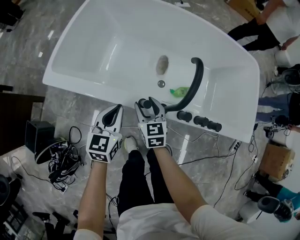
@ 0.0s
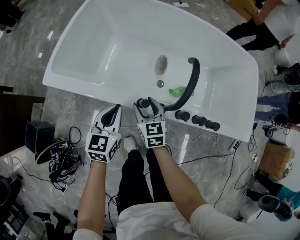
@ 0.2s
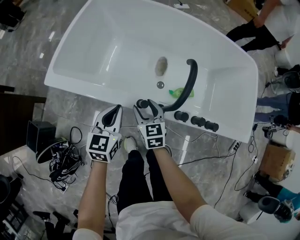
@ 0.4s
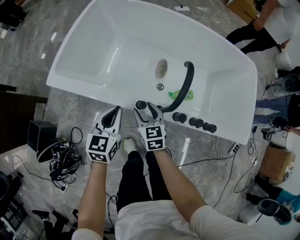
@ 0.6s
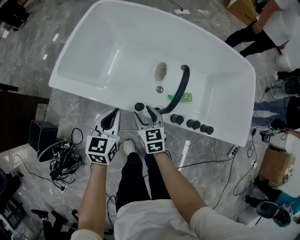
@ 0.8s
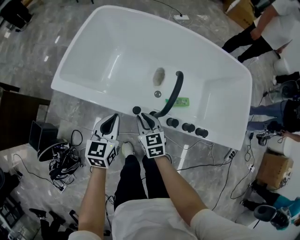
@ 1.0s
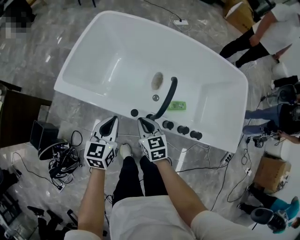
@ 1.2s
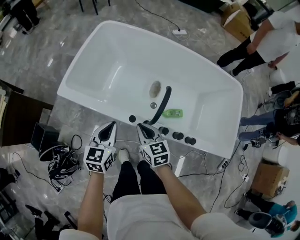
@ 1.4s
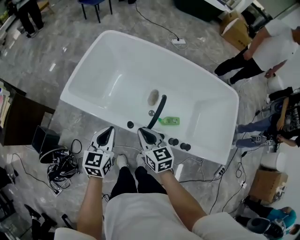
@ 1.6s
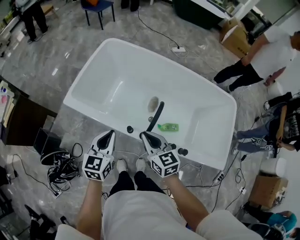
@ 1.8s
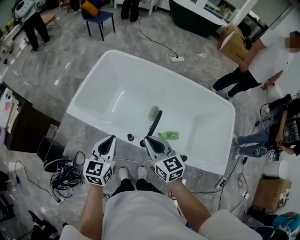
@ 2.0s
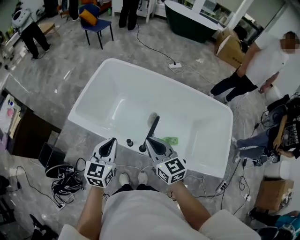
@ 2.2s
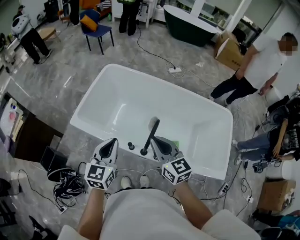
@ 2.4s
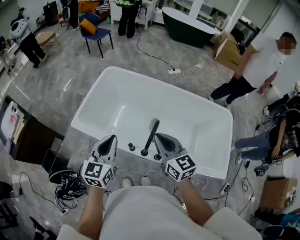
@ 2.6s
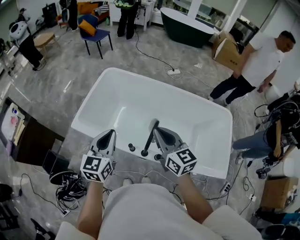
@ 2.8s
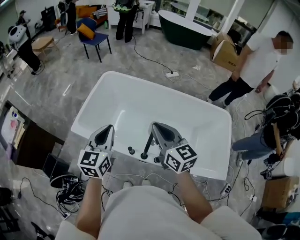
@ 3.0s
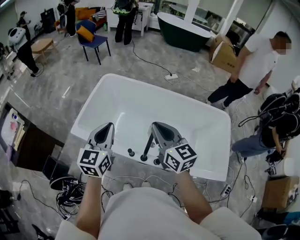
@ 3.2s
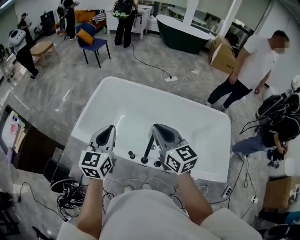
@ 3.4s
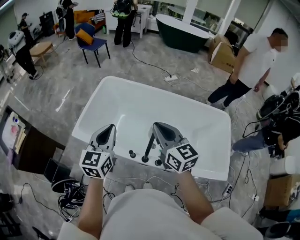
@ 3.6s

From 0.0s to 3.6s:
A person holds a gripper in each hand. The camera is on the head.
From 0.0s to 1.8s: Both grippers move upward, roughly 25 cm. The right gripper swivels approximately 20 degrees, and closes up.
From 1.8s to 3.6s: The two grippers go some 20 cm upward.

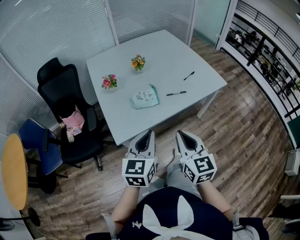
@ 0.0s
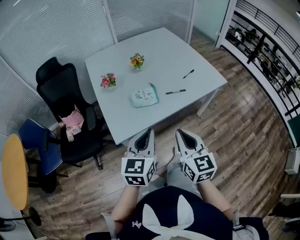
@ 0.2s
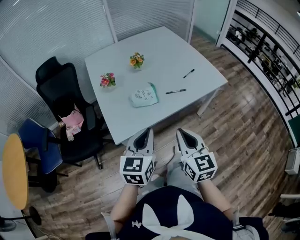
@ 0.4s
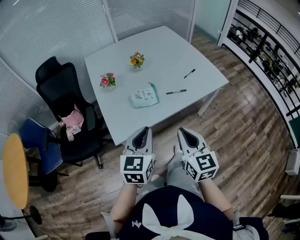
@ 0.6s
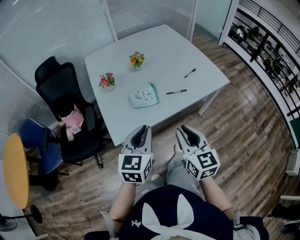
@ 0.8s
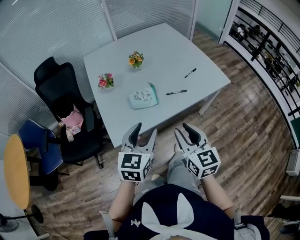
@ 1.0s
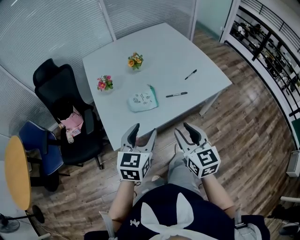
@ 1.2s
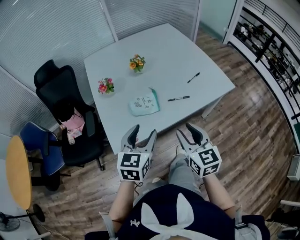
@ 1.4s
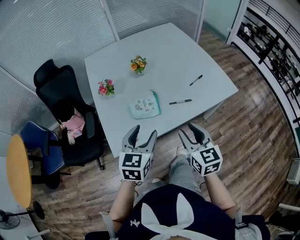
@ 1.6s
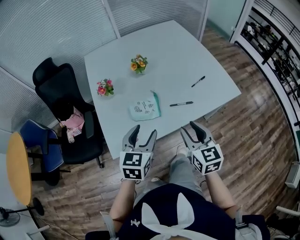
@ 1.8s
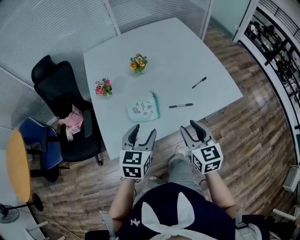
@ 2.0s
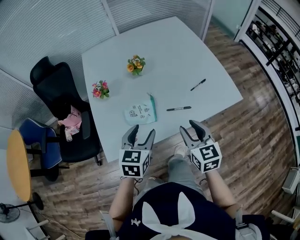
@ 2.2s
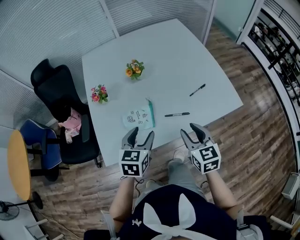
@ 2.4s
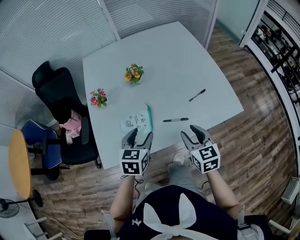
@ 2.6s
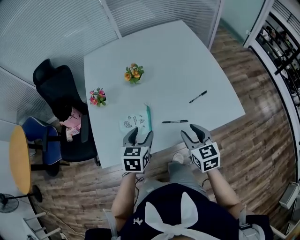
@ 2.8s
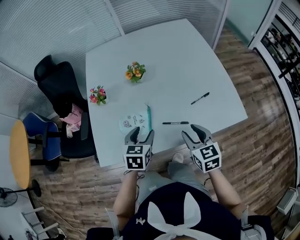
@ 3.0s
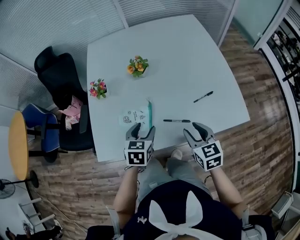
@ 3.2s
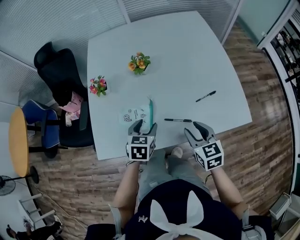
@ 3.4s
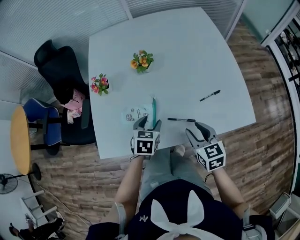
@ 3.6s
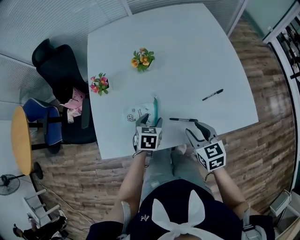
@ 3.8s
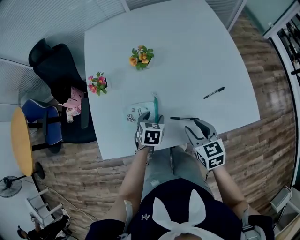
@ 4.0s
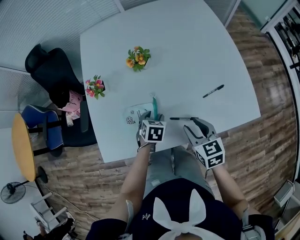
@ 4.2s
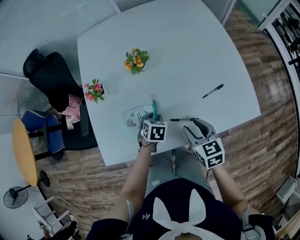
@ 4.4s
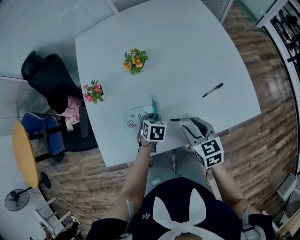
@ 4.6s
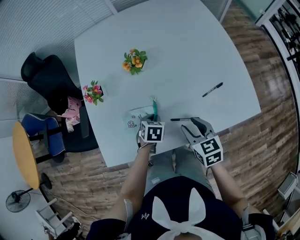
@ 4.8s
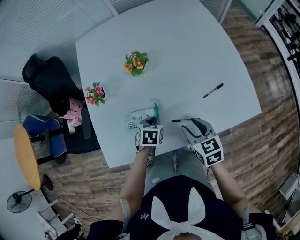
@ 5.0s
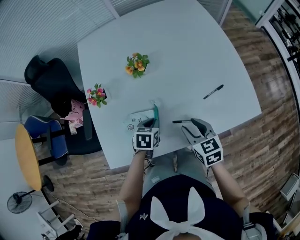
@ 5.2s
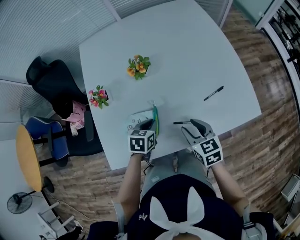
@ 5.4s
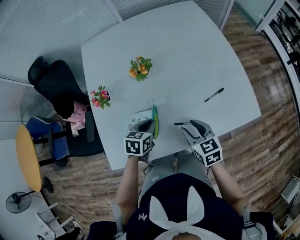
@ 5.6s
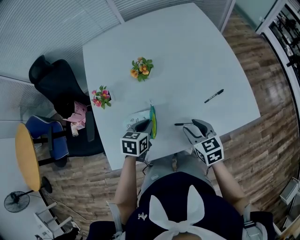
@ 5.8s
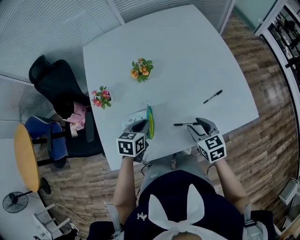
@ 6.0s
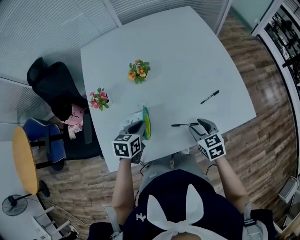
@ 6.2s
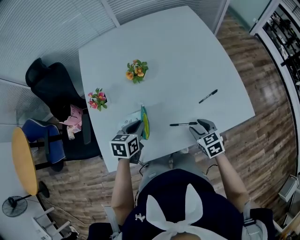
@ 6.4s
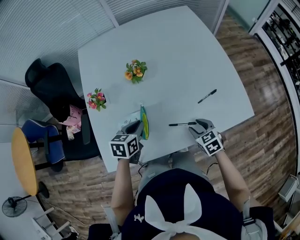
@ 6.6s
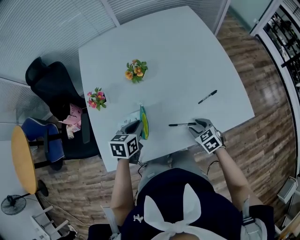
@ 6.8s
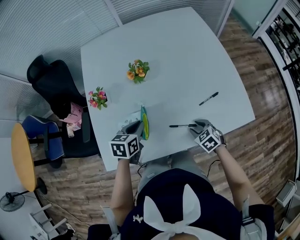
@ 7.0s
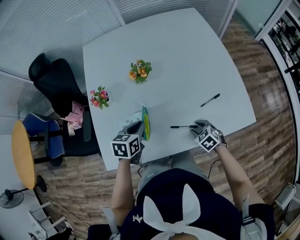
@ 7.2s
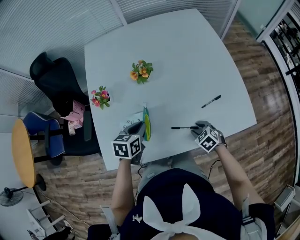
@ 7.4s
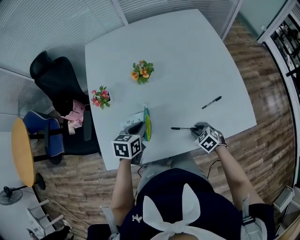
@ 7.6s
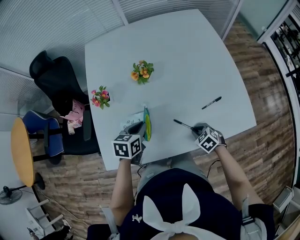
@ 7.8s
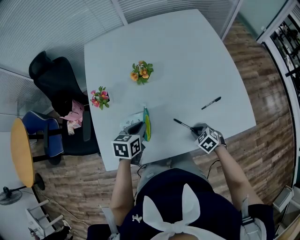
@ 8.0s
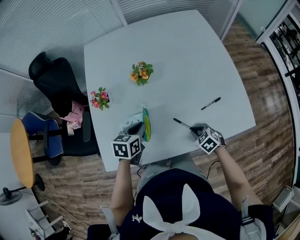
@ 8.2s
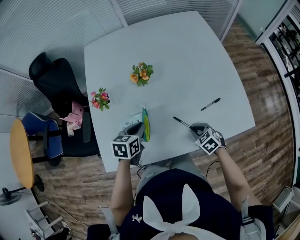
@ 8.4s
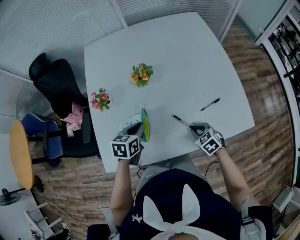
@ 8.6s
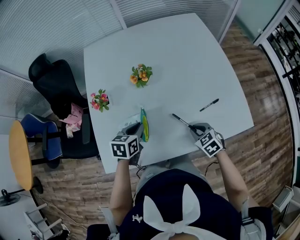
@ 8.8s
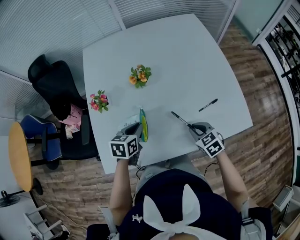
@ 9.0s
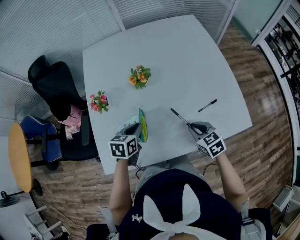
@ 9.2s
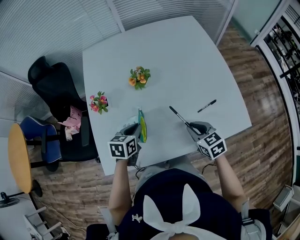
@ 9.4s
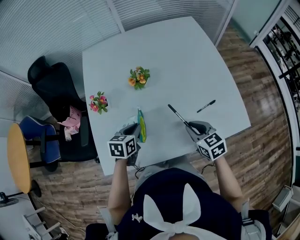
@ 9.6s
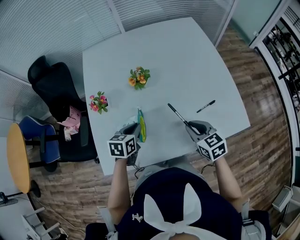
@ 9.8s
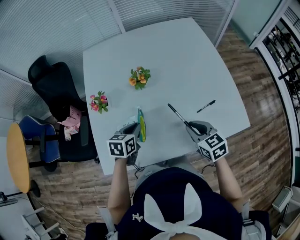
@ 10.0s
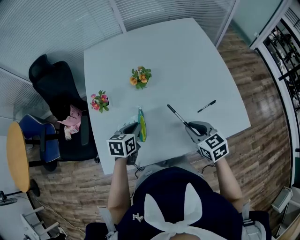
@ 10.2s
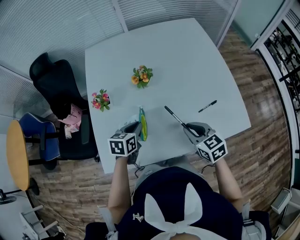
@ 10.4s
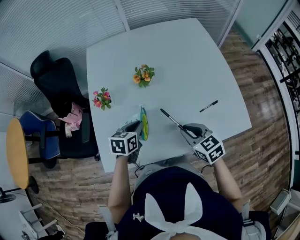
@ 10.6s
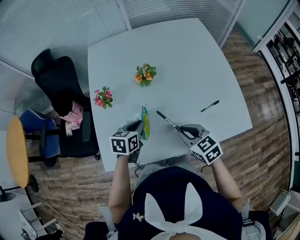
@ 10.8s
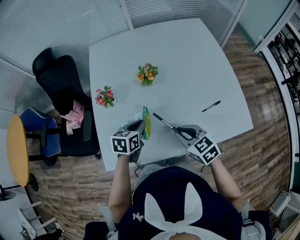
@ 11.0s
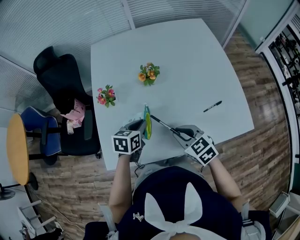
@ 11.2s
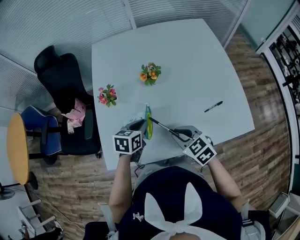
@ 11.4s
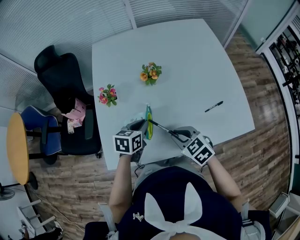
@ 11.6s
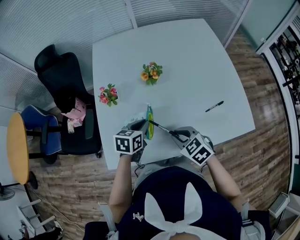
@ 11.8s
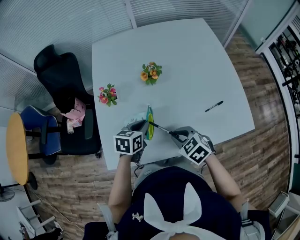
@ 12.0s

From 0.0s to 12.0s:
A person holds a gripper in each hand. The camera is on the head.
From 0.0s to 1.6s: The two grippers go about 15 cm forward. The left gripper opens up, while the right gripper opens its fingers.
From 1.6s to 3.0s: The right gripper moves forward, to the right and downward, approximately 20 cm; the left gripper is displaced forward, downward and to the right by about 20 cm, and turns by some 20 degrees.
From 3.0s to 4.4s: The right gripper moves downward, some 5 cm. Meanwhile the left gripper travels downward and forward by roughly 15 cm, swivels roughly 20 degrees, and closes its fingers.
From 4.4s to 6.0s: The left gripper travels upward and to the left by about 10 cm, swivels approximately 20 degrees, and closes its fingers.
From 6.0s to 7.6s: The right gripper shifts approximately 15 cm downward, and rotates roughly 40 degrees.
From 7.6s to 9.0s: The right gripper heads upward, covering approximately 10 cm.
From 9.0s to 10.4s: The right gripper travels upward by roughly 10 cm.
From 10.4s to 12.0s: The right gripper moves to the left, roughly 10 cm, and changes its angle by some 20 degrees.

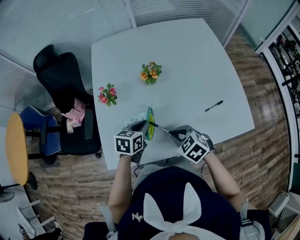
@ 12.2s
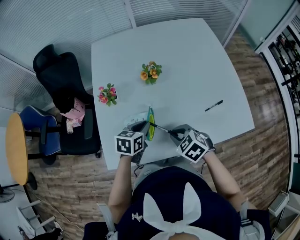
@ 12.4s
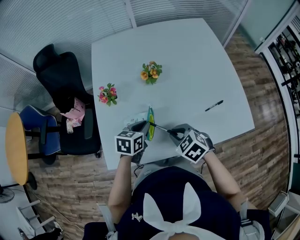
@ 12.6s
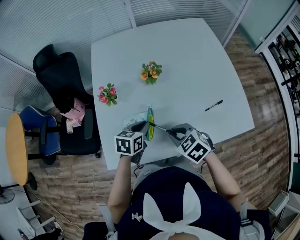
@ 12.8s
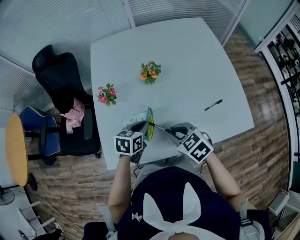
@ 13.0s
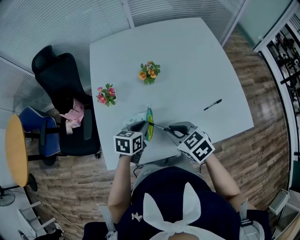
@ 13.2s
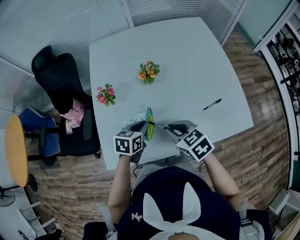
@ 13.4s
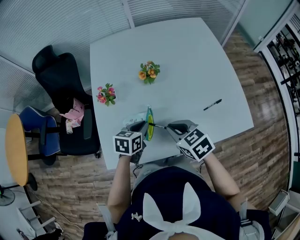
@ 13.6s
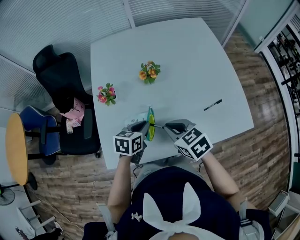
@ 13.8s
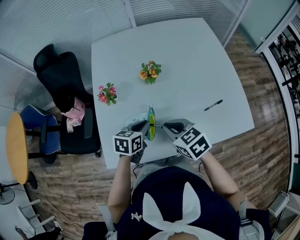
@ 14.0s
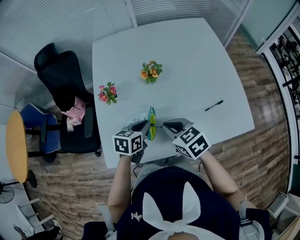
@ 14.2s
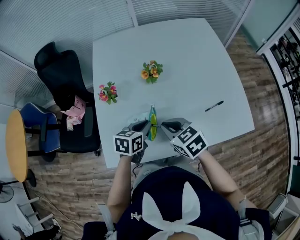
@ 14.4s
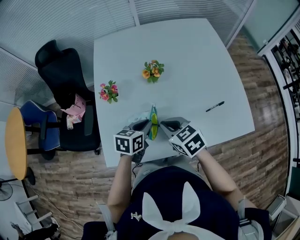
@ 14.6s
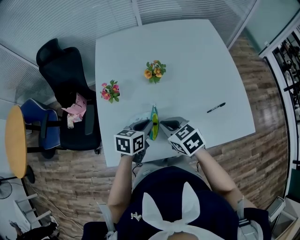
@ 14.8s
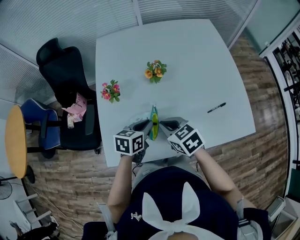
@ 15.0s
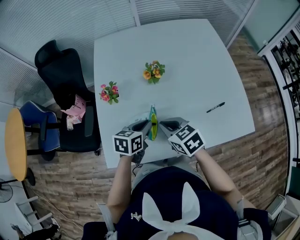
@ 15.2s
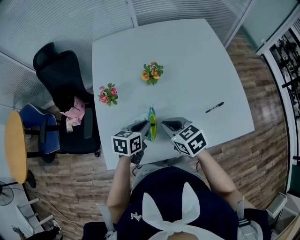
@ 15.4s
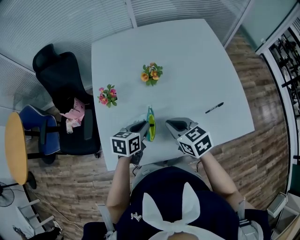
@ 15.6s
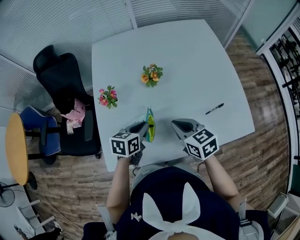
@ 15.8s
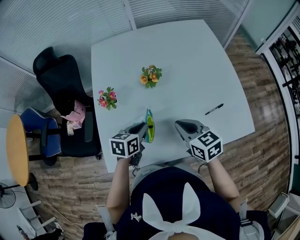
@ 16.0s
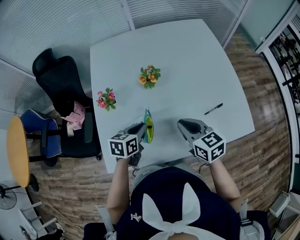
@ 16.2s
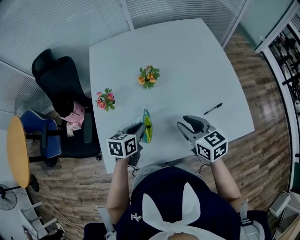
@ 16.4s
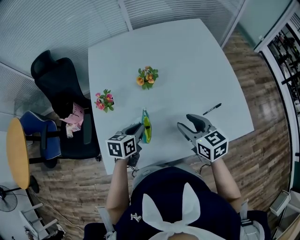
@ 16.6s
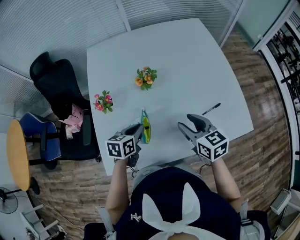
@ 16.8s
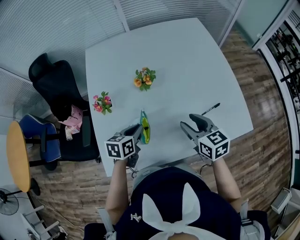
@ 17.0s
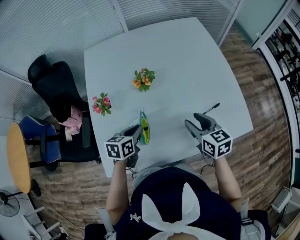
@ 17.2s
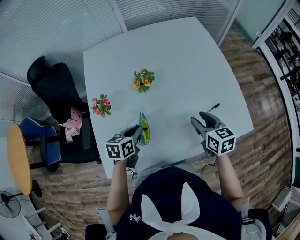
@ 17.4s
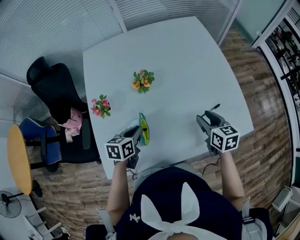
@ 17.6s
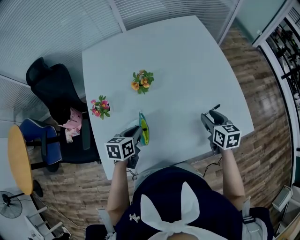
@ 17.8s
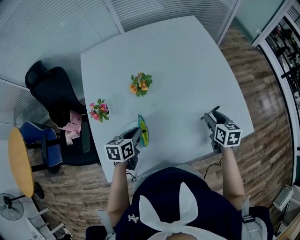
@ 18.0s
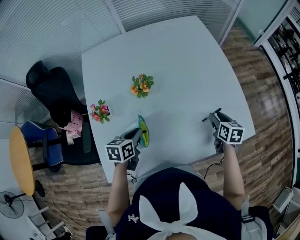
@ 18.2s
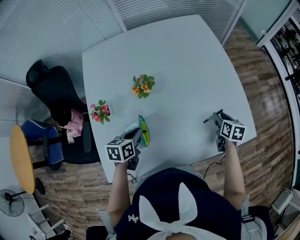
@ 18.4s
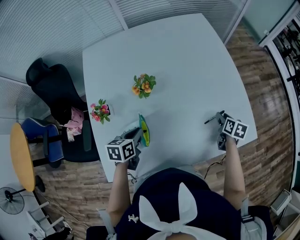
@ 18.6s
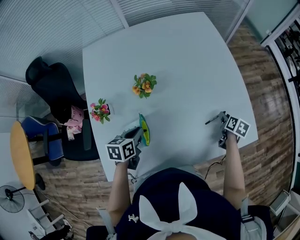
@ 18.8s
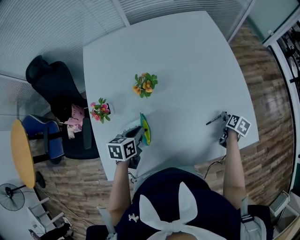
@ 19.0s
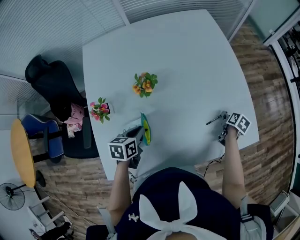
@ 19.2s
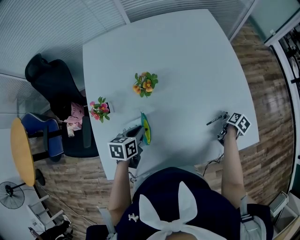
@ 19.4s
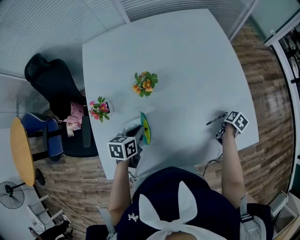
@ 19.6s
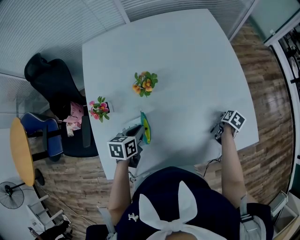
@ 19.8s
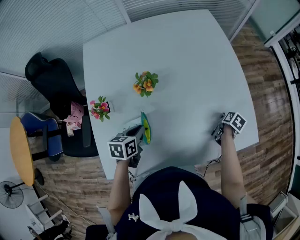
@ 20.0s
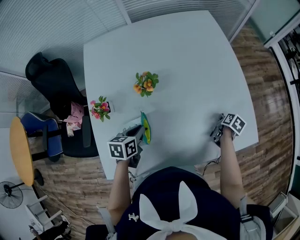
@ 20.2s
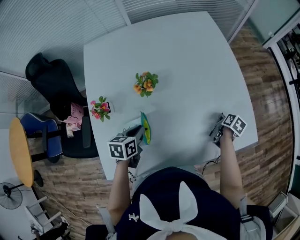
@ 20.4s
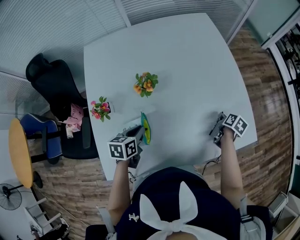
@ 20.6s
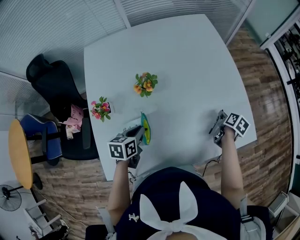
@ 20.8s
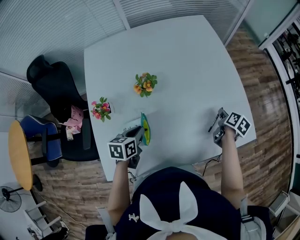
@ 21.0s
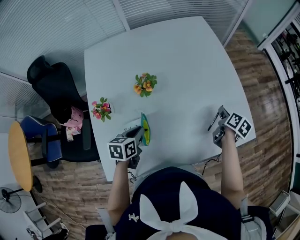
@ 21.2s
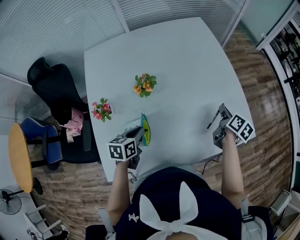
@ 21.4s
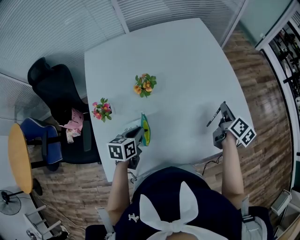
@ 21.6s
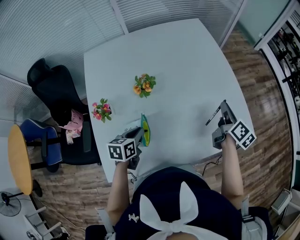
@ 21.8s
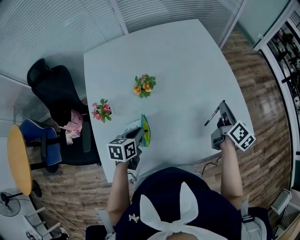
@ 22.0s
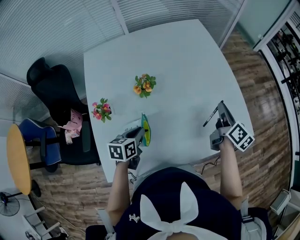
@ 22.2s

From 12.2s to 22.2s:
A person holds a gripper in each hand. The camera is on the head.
From 12.2s to 13.6s: The right gripper goes some 5 cm upward.
From 13.6s to 15.0s: The right gripper moves about 5 cm.
From 15.0s to 16.4s: The right gripper is displaced to the right by approximately 10 cm, swivels about 20 degrees, and opens.
From 16.4s to 18.0s: The right gripper moves to the right, downward and forward, some 20 cm, and turns by some 30 degrees.
From 18.0s to 19.4s: The right gripper moves downward, to the right and forward, some 20 cm, and turns by some 50 degrees.
From 19.4s to 20.8s: The right gripper travels upward by about 5 cm, and closes its fingers.
From 20.8s to 22.2s: The right gripper goes some 15 cm upward, and tips its fingers upward by some 40 degrees.
